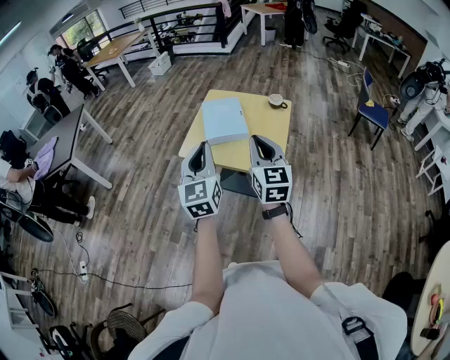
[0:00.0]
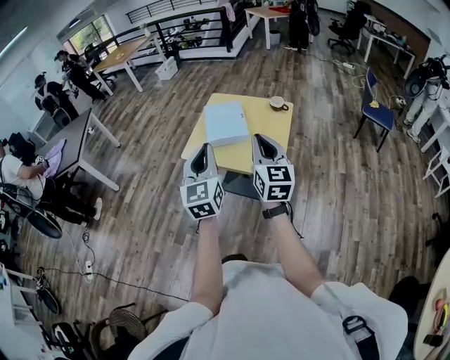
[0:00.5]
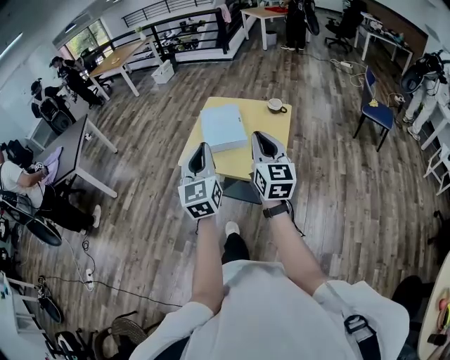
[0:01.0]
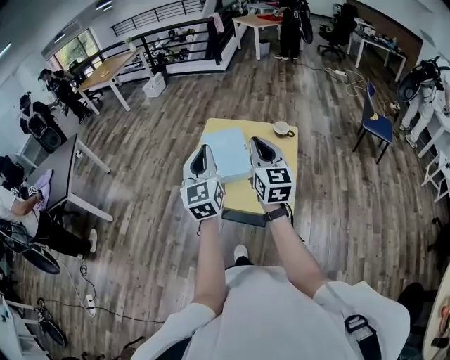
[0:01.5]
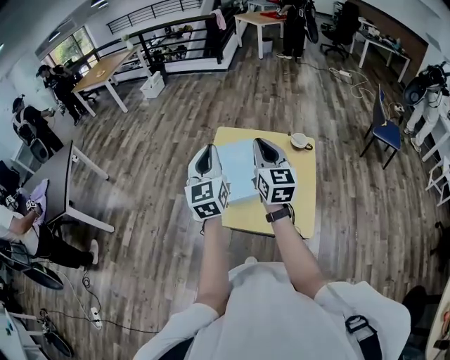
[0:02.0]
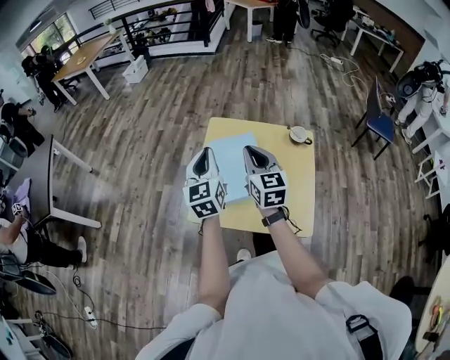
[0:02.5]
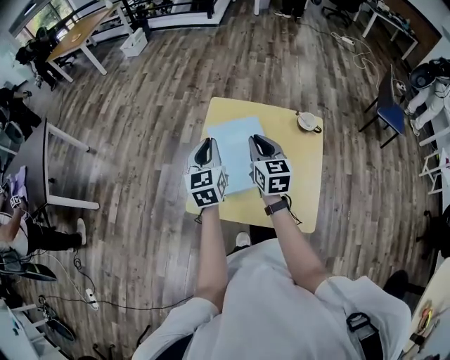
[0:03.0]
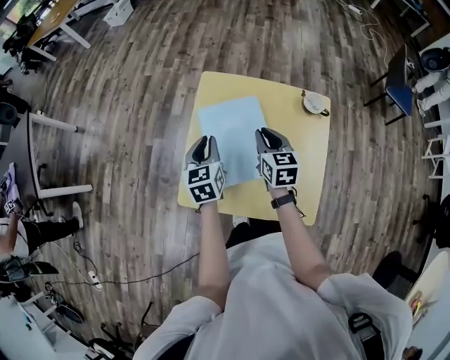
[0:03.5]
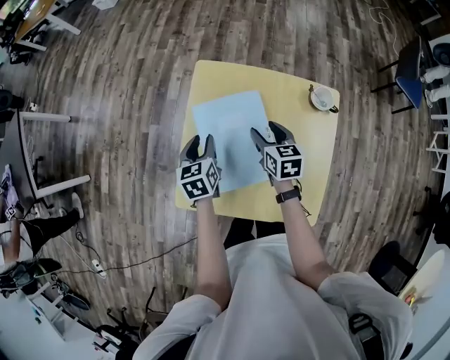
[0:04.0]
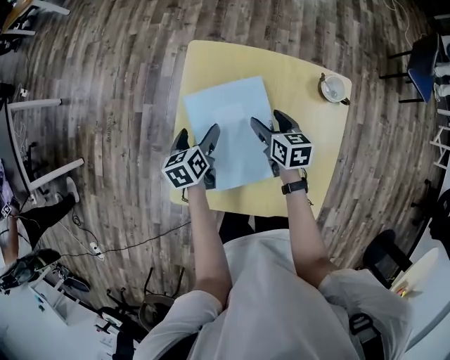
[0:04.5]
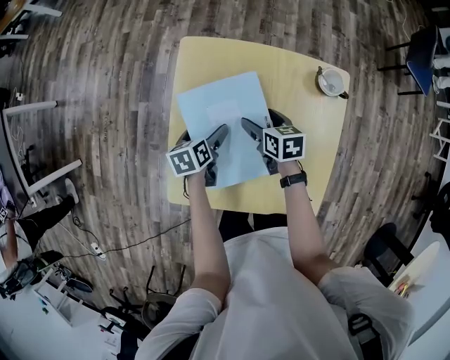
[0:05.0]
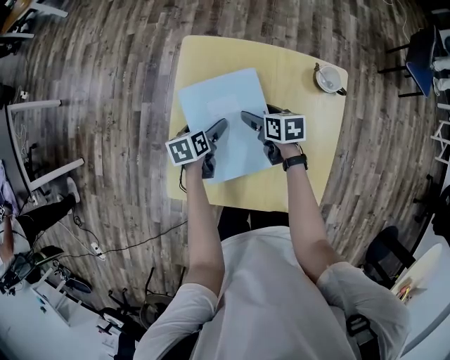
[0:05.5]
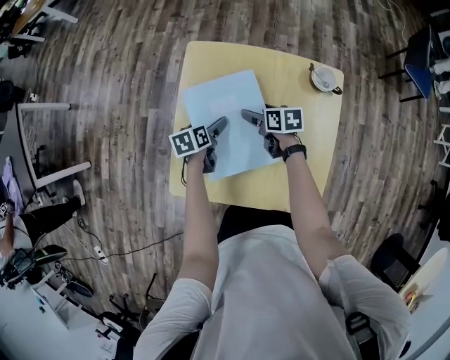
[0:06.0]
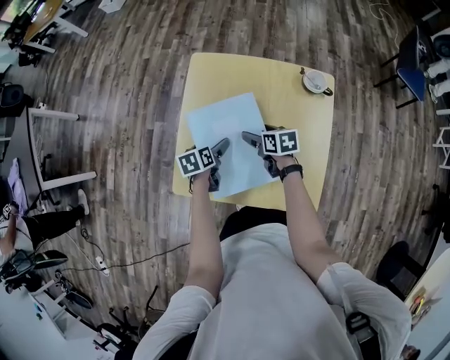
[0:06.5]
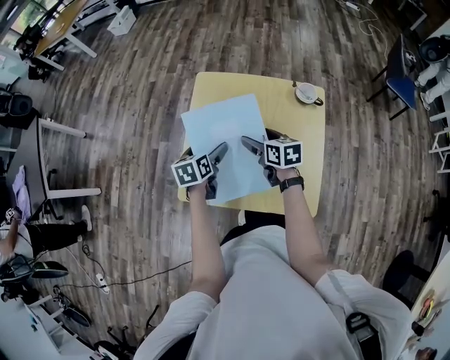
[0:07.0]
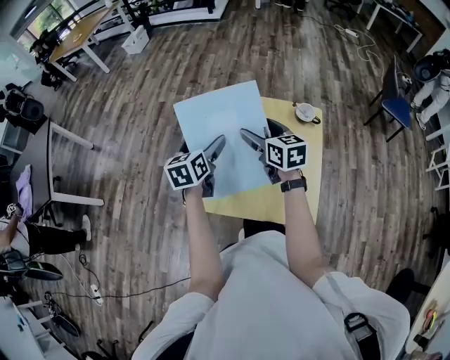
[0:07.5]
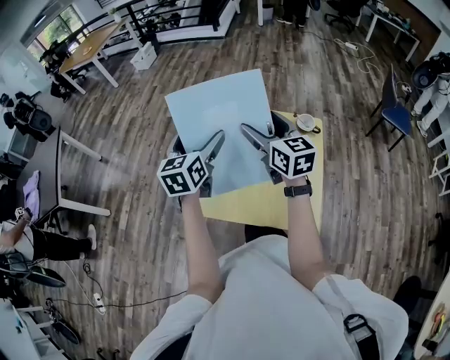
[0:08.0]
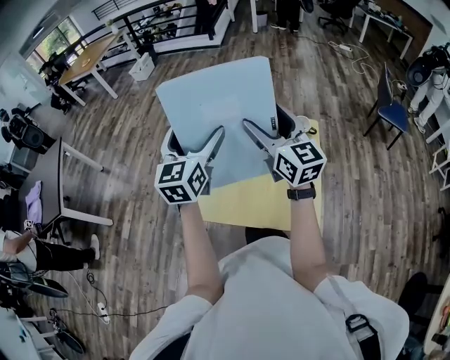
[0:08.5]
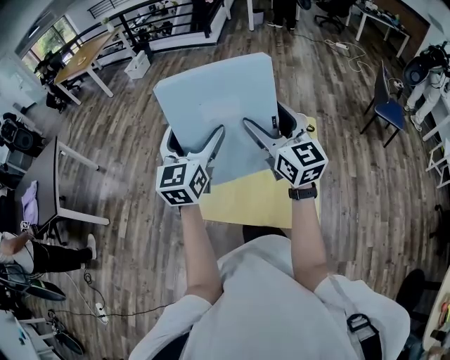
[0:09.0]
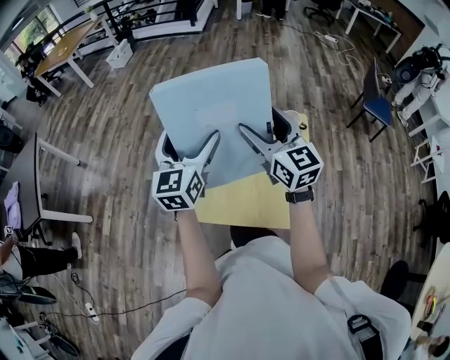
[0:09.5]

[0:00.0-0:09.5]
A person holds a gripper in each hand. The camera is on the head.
0:00.0 to 0:02.0: The grippers both shift forward by some 35 cm.
0:02.0 to 0:04.0: The two grippers go some 35 cm downward and forward. The left gripper tilts its fingers approximately 40 degrees downward. Meanwhile the right gripper angles its fingers downward, by roughly 40 degrees, and opens.
0:04.0 to 0:05.5: The two grippers go some 10 cm downward. The left gripper rotates approximately 20 degrees, and opens up. Meanwhile the right gripper rotates roughly 20 degrees, and opens its fingers.
0:05.5 to 0:07.5: The two grippers go approximately 25 cm upward. The right gripper swivels approximately 40 degrees. Meanwhile the left gripper swivels about 30 degrees.
0:07.5 to 0:09.5: Both grippers move upward, roughly 15 cm. The left gripper turns by approximately 30 degrees, while the right gripper changes its angle by about 30 degrees.

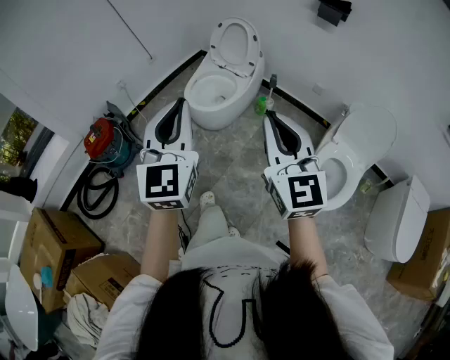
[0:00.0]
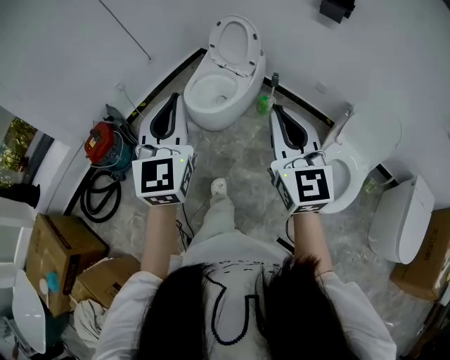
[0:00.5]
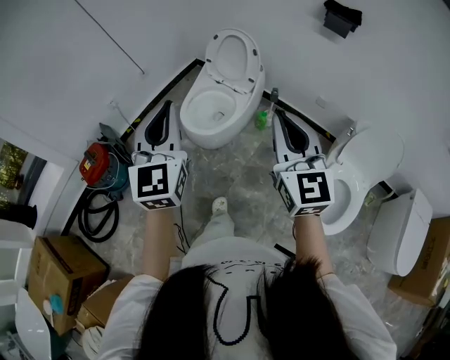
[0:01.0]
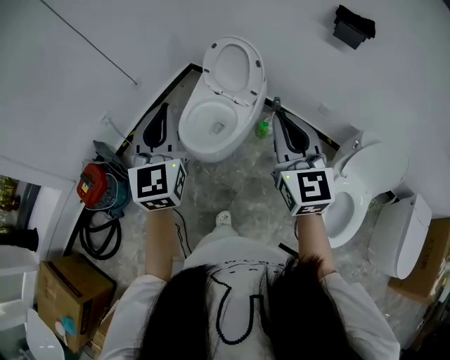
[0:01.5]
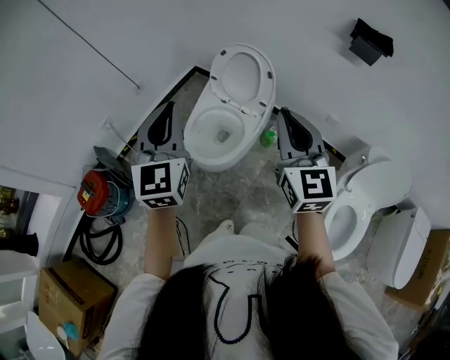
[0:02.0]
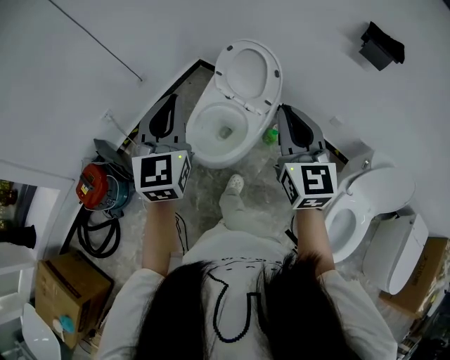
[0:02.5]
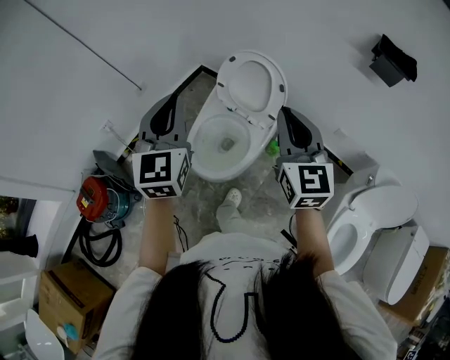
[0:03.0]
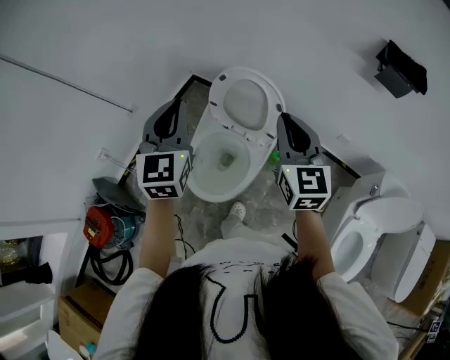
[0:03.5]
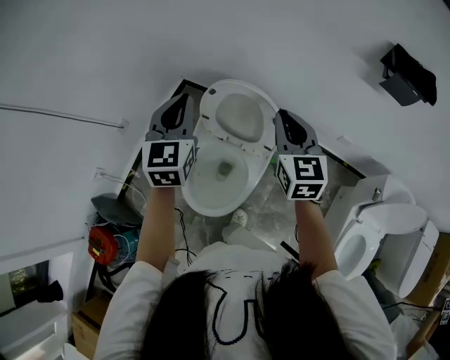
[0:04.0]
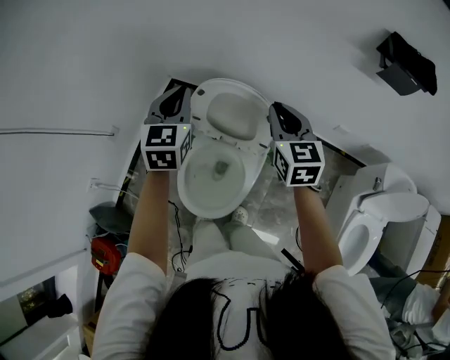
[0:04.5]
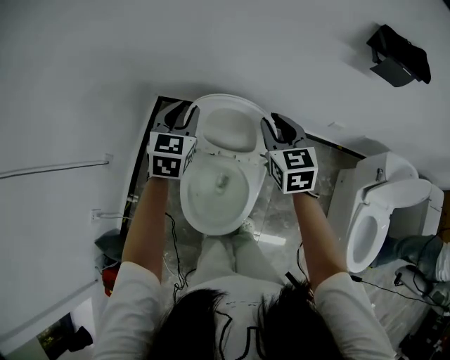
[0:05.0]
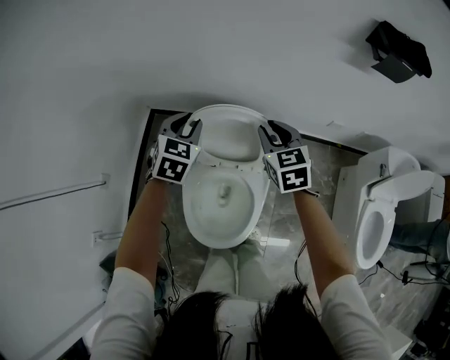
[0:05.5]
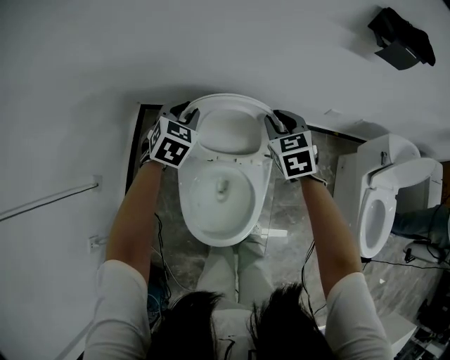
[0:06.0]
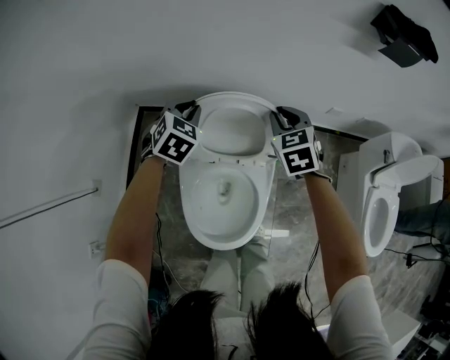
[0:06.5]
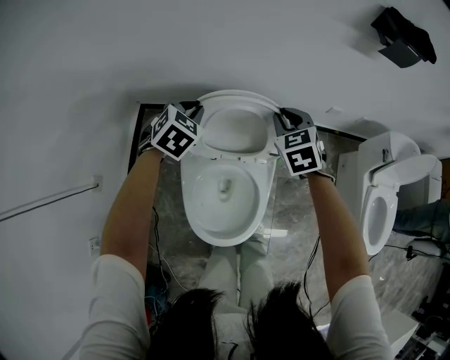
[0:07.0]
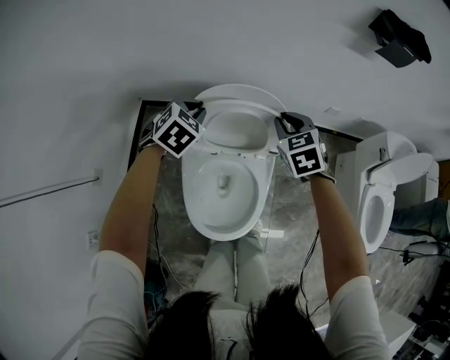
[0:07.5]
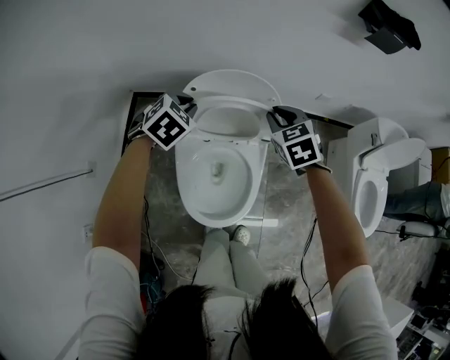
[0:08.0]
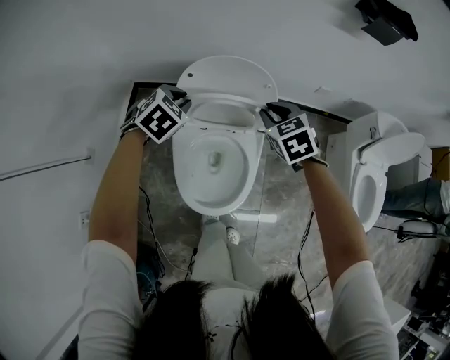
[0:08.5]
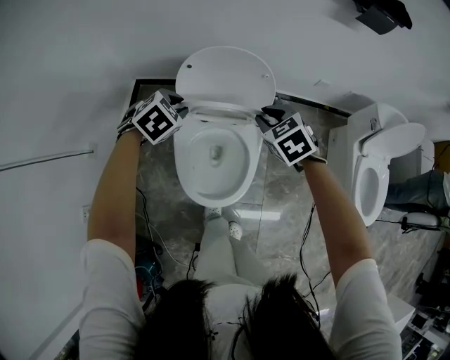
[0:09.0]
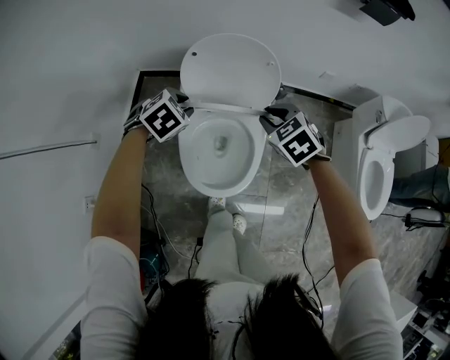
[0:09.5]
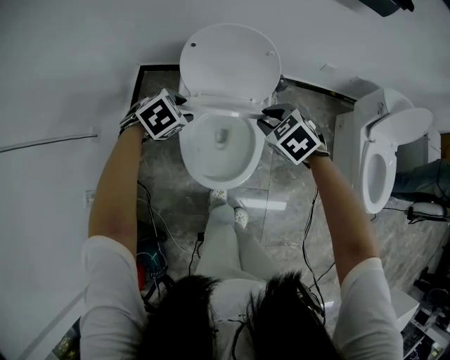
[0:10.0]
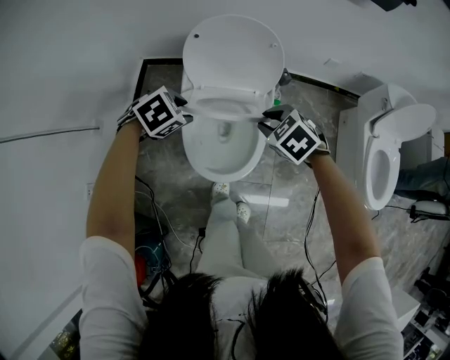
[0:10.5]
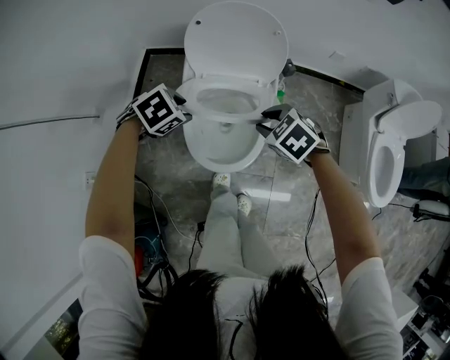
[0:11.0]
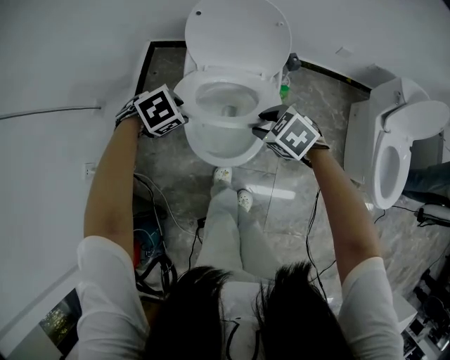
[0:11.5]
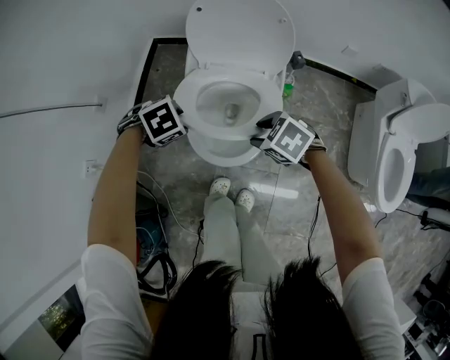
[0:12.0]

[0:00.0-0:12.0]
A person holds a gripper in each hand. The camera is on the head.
0:00.0 to 0:02.0: The two grippers travel together, forward, about 40 cm.
0:02.0 to 0:04.0: Both grippers travel together forward, about 40 cm.
0:04.0 to 0:06.0: Both grippers travel together downward and forward, some 25 cm. The left gripper angles its fingers downward, by some 30 degrees, and opens its fingers; the right gripper turns by roughly 30 degrees.
0:06.0 to 0:08.0: The grippers both shift backward by roughly 5 cm.
0:08.0 to 0:10.0: The grippers both shift backward by approximately 15 cm. The left gripper opens up. The right gripper turns by roughly 20 degrees.
0:10.0 to 0:12.0: The left gripper shifts by some 15 cm. Meanwhile the right gripper ends up some 15 cm from where it was, changes its angle by some 20 degrees, and opens.

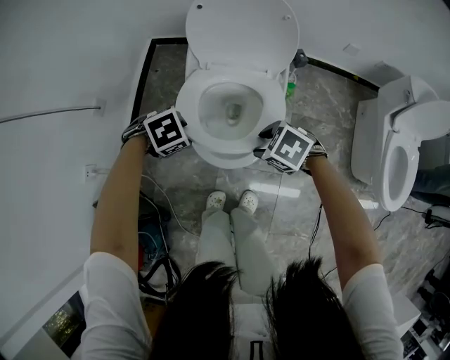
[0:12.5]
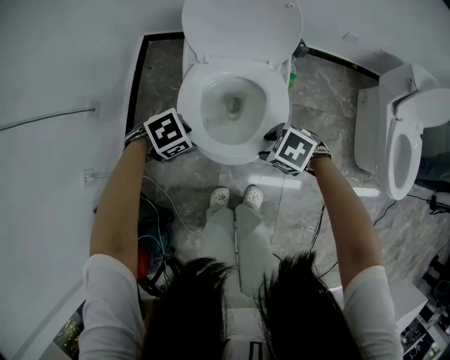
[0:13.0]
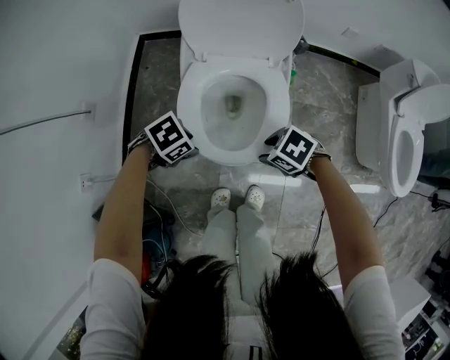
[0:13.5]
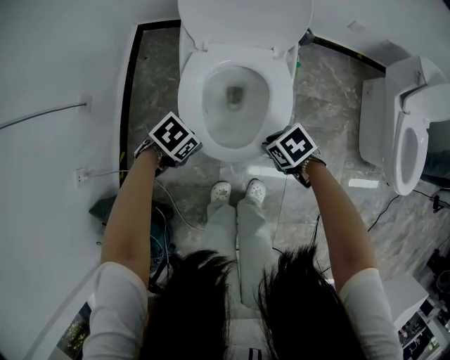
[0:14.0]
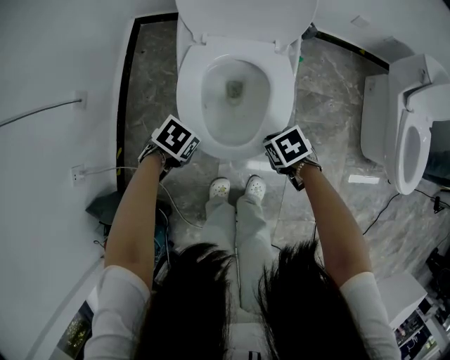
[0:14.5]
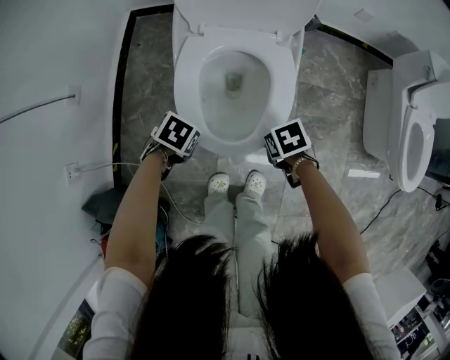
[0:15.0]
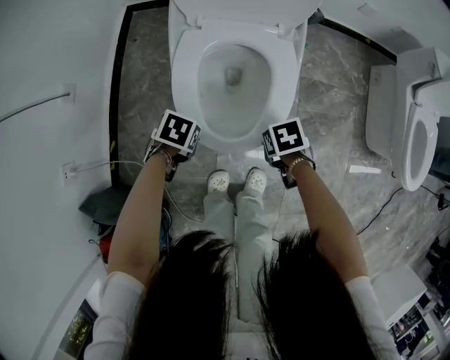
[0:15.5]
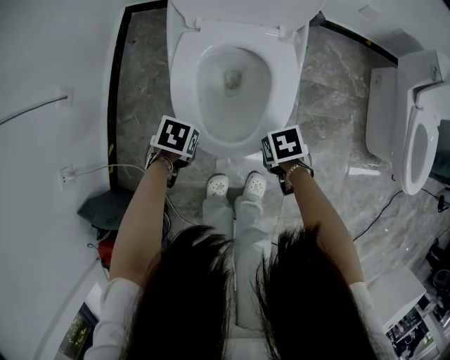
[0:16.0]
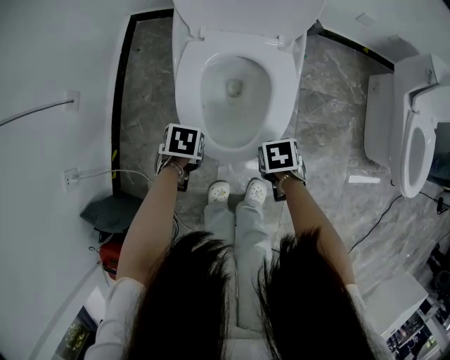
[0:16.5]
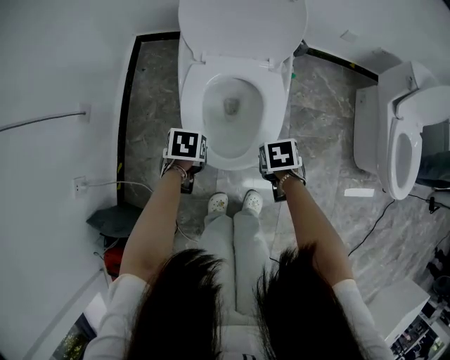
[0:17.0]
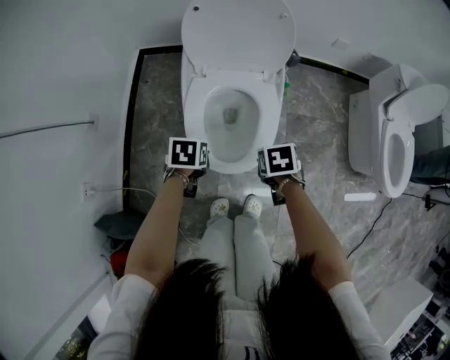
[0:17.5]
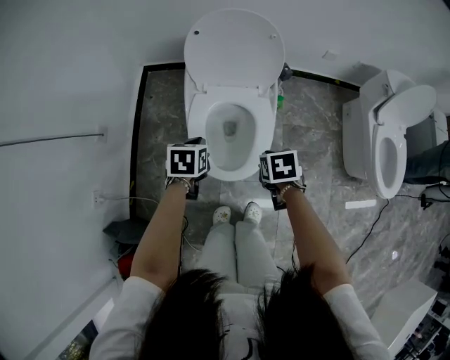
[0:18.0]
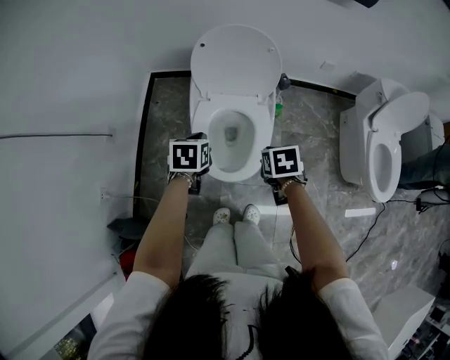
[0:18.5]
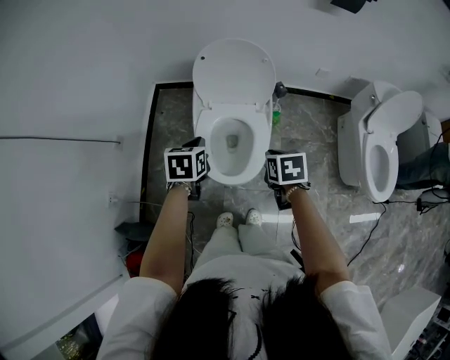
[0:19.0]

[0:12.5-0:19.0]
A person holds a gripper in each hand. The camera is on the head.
0:12.5 to 0:14.5: The two grippers go some 15 cm downward. The left gripper swivels about 30 degrees, and closes up; the right gripper swivels some 40 degrees, and closes its fingers.
0:14.5 to 0:17.0: The right gripper reaches some 5 cm downward, then returns, and rotates some 20 degrees; the left gripper goes downward and returns, about 5 cm each way, and rotates about 30 degrees.
0:17.0 to 0:19.0: Both grippers move upward, roughly 30 cm. The left gripper changes its angle by some 30 degrees.
